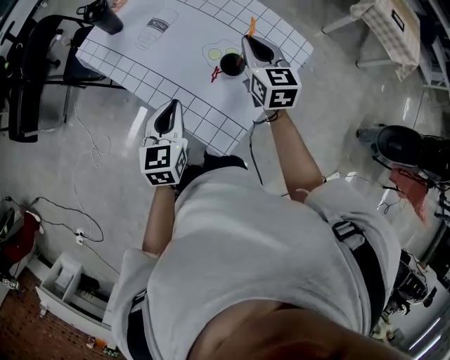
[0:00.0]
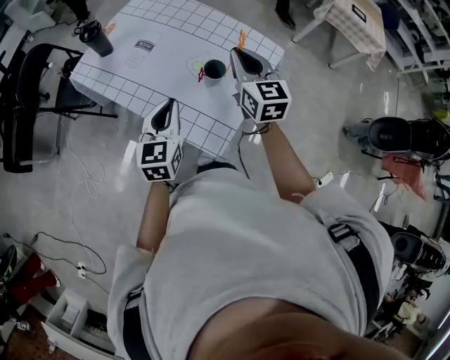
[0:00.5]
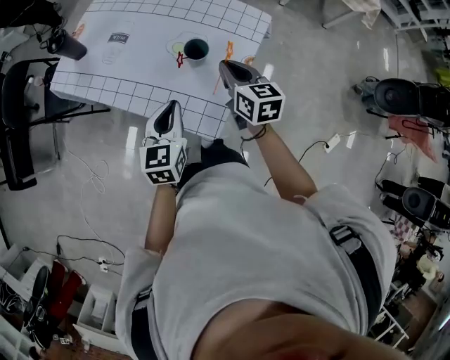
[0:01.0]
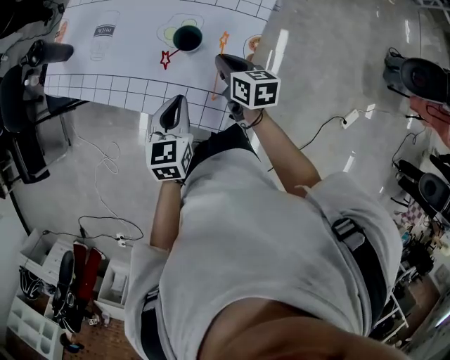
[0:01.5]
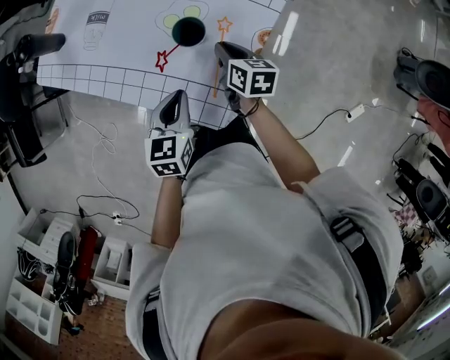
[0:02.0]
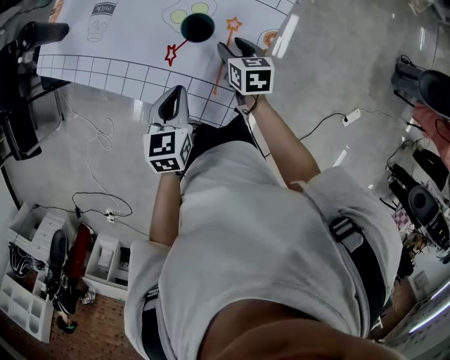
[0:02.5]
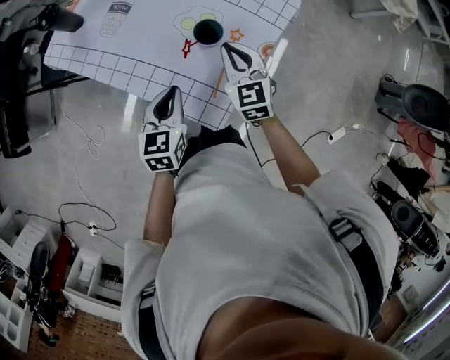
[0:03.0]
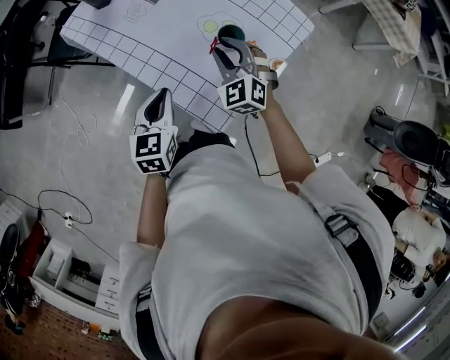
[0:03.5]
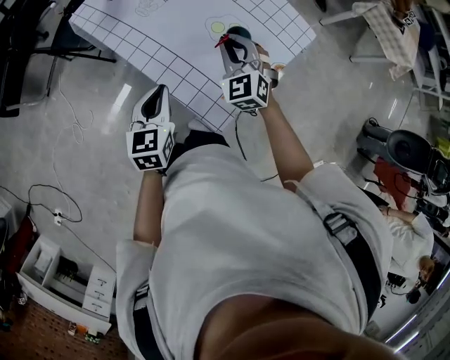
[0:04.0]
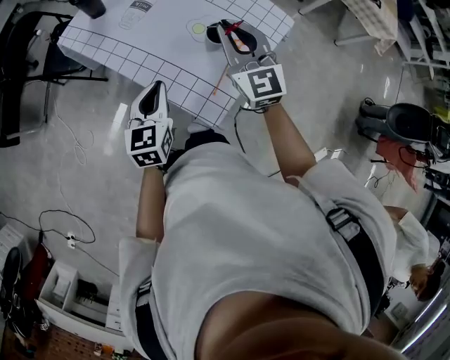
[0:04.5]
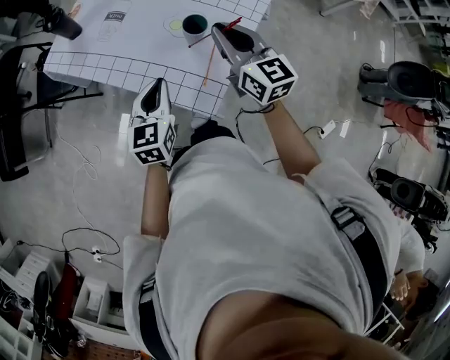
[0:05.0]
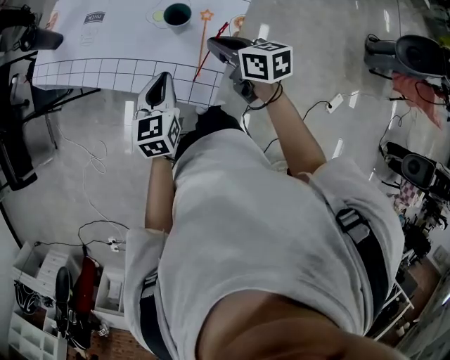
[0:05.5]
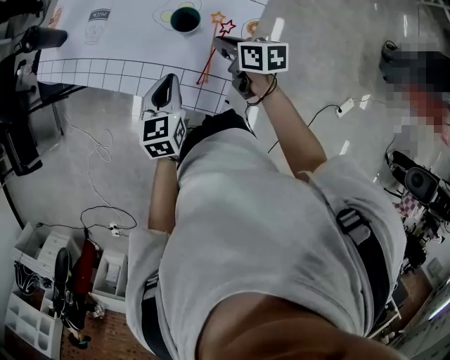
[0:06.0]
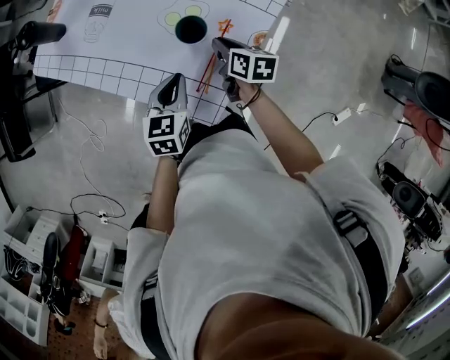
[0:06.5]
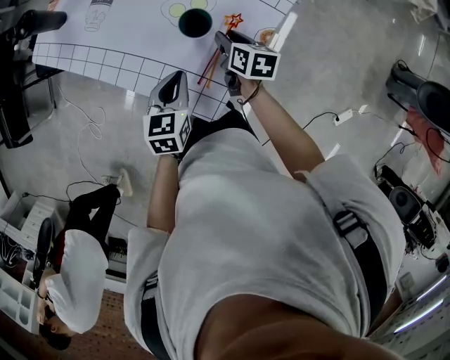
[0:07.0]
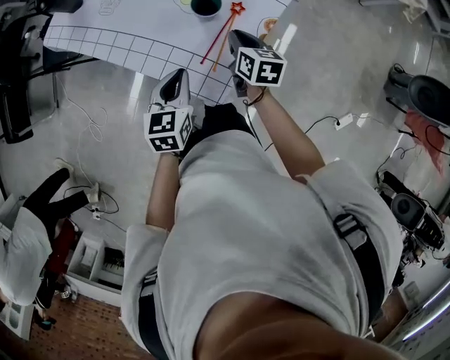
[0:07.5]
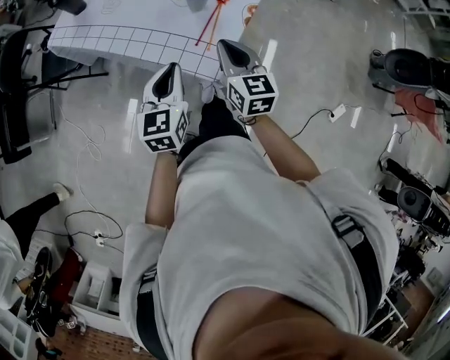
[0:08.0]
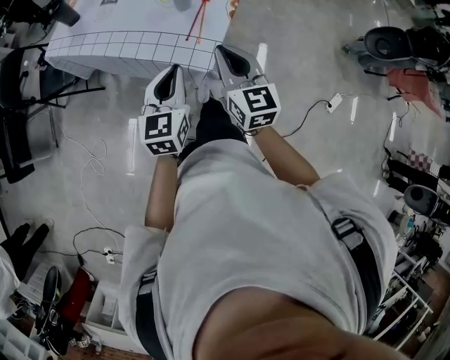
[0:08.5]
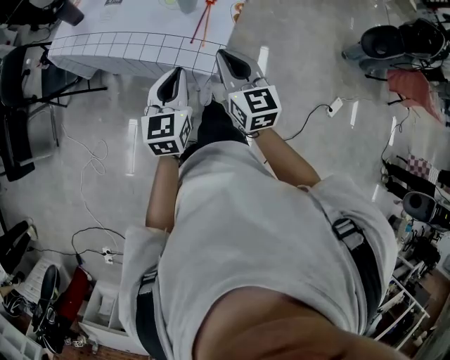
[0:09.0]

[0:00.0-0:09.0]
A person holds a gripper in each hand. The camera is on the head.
0:00.0 to 0:02.0: The left gripper heads downward and to the right, covering roughly 15 cm, and rotates some 20 degrees, while the right gripper travels downward by approximately 20 cm, and changes its angle by some 40 degrees.
0:02.0 to 0:04.5: The right gripper heads upward, covering some 30 cm, rolls counterclockwise, seen from behind, by some 60 degrees, and opens, then closes once more. Meanwhile the left gripper moves to the left and upward, about 15 cm, and swivels about 20 degrees.
0:04.5 to 0:07.0: The left gripper goes approximately 15 cm to the right and downward. The right gripper goes some 30 cm downward, rotates around the line of its fingers by about 60 degrees, clockwise from behind, and opens up.
0:07.0 to 0:09.0: Both grippers travel together backward and upward, roughly 35 cm. The left gripper changes its angle by approximately 30 degrees; the right gripper swivels roughly 40 degrees, and closes its fingers.

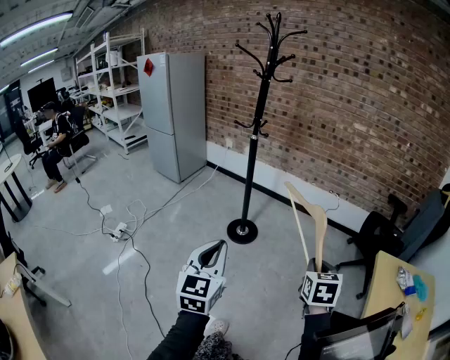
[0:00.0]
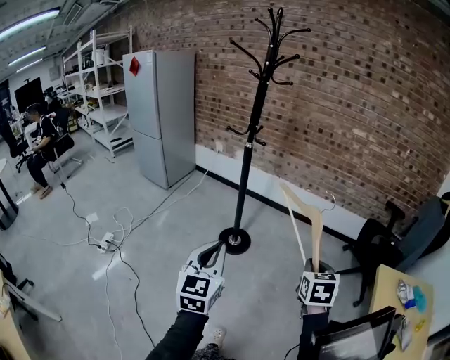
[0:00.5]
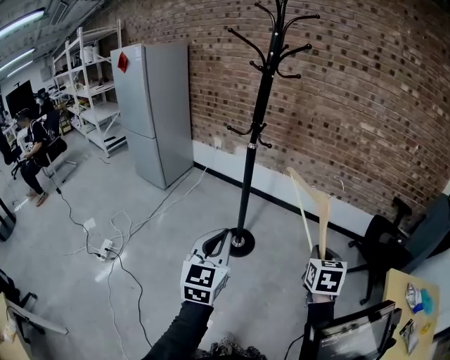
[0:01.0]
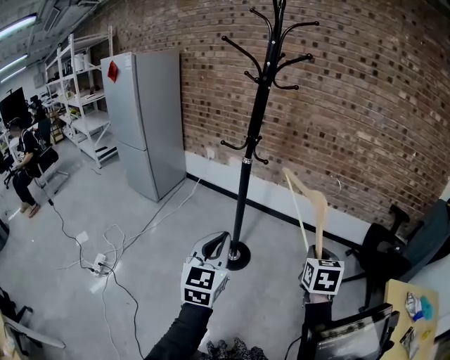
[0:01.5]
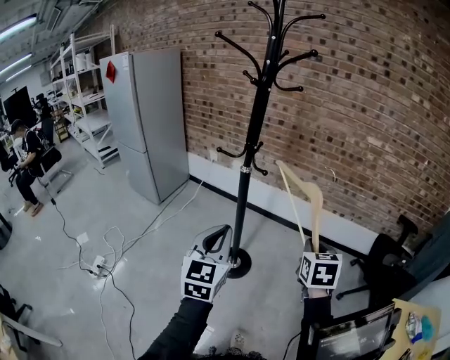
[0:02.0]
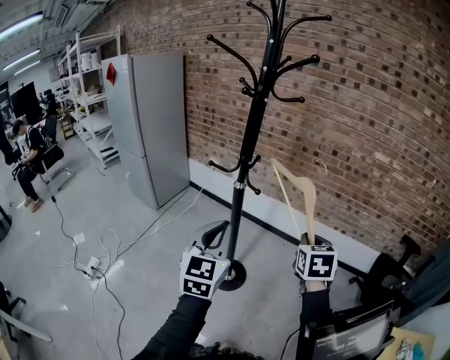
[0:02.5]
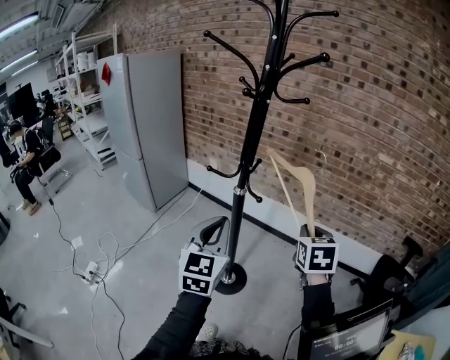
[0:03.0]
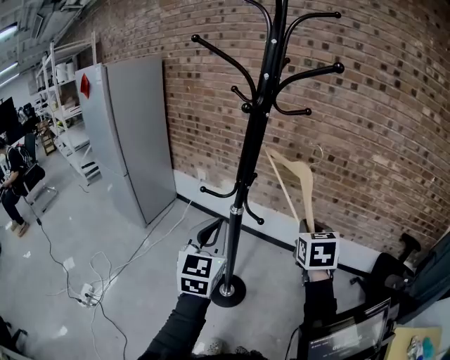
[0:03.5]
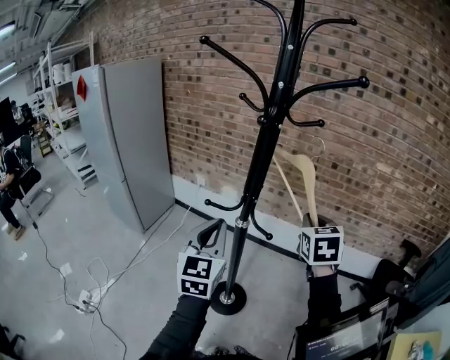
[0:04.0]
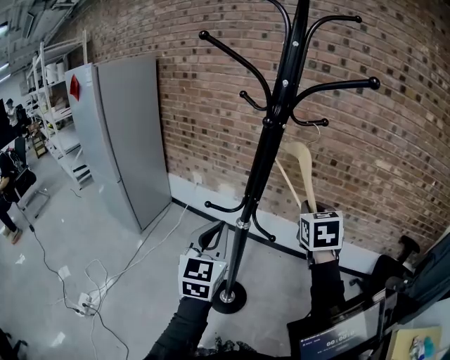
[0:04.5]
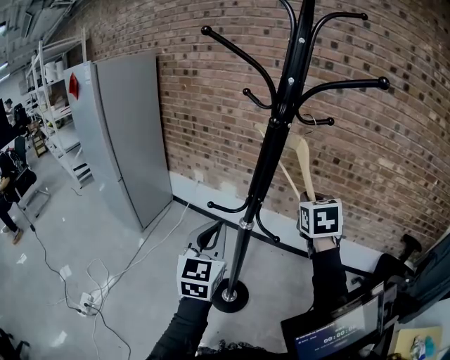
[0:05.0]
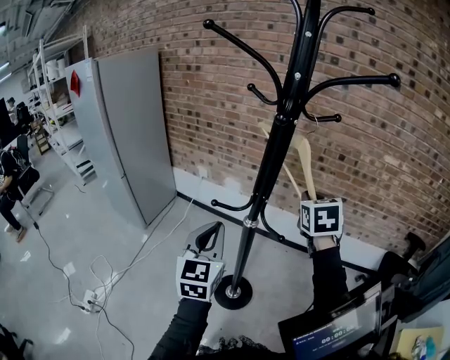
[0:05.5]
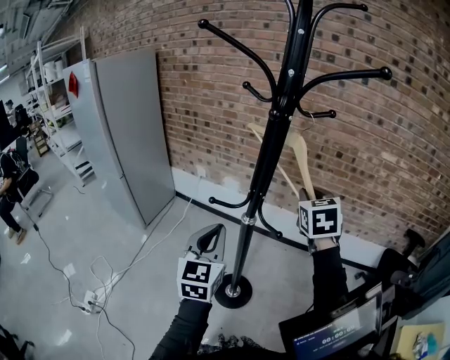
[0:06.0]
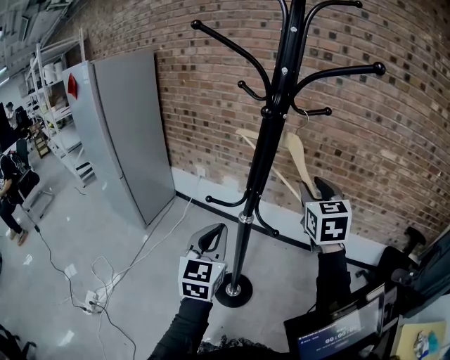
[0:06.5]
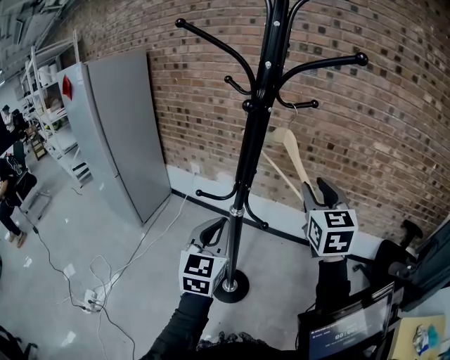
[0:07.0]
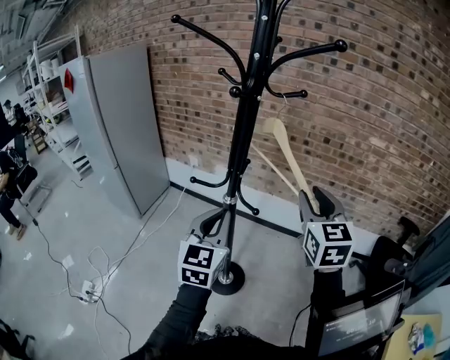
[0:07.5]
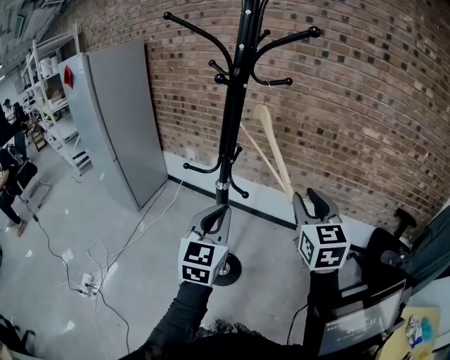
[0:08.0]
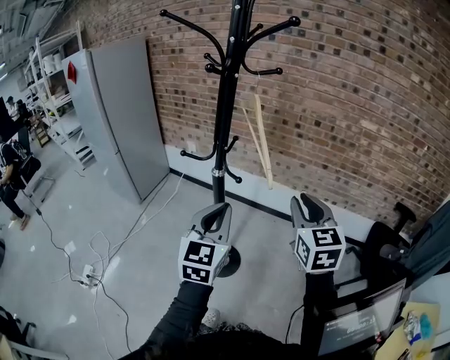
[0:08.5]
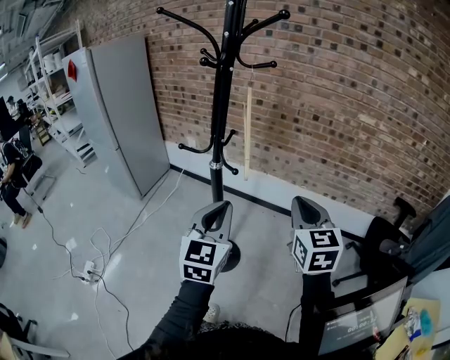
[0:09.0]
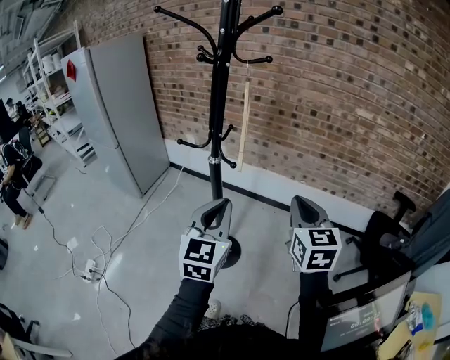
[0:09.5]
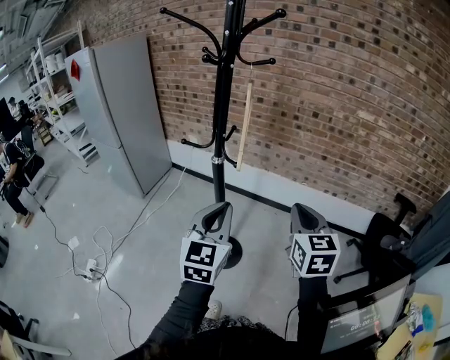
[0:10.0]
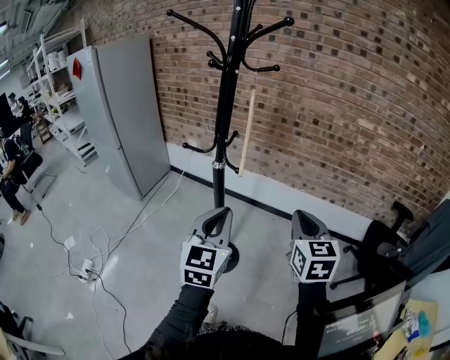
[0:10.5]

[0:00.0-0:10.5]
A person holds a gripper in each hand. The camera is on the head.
0:00.0 to 0:02.0: Both grippers are carried forward, roughly 40 cm.
0:02.0 to 0:04.0: The two grippers go approximately 25 cm forward.
0:04.0 to 0:06.5: The right gripper travels upward by about 5 cm, and opens up.
0:06.5 to 0:08.5: The left gripper heads to the right and backward, covering about 15 cm. The right gripper moves backward and to the right, approximately 20 cm.
0:08.5 to 0:10.5: The right gripper is displaced backward by some 5 cm, and closes its fingers.

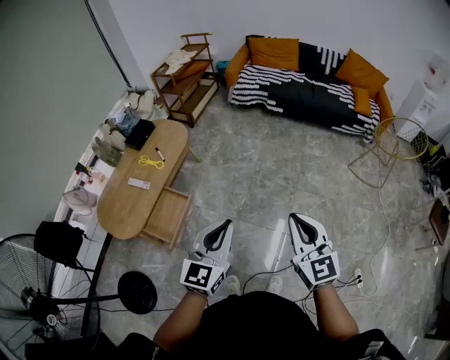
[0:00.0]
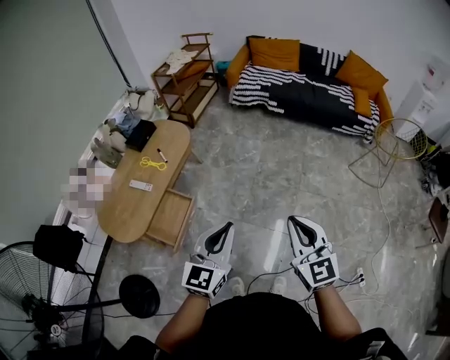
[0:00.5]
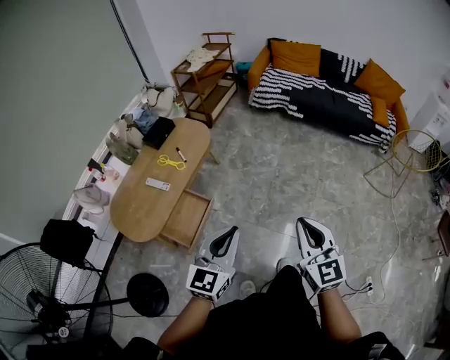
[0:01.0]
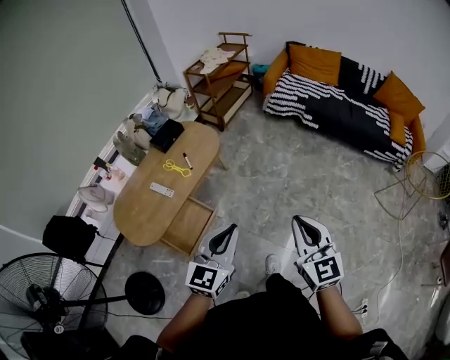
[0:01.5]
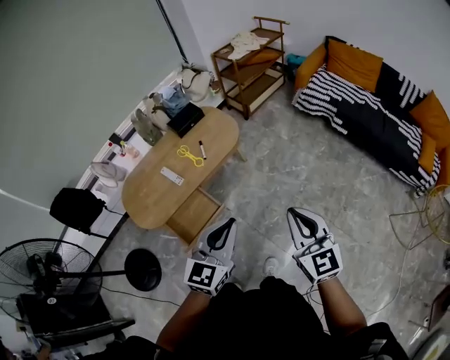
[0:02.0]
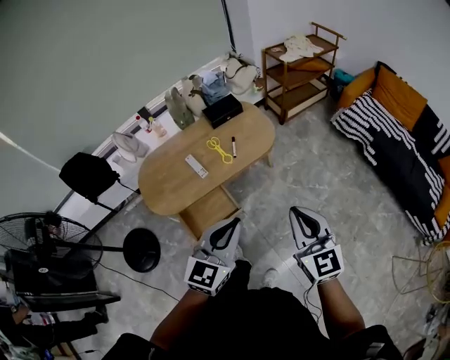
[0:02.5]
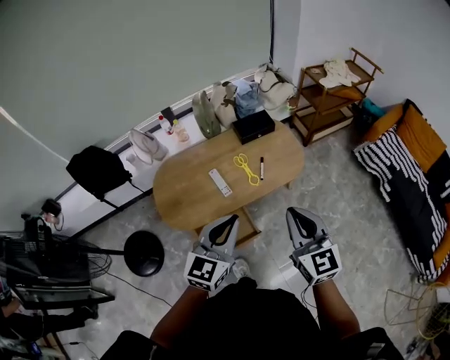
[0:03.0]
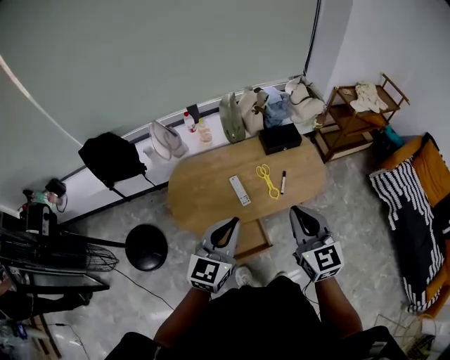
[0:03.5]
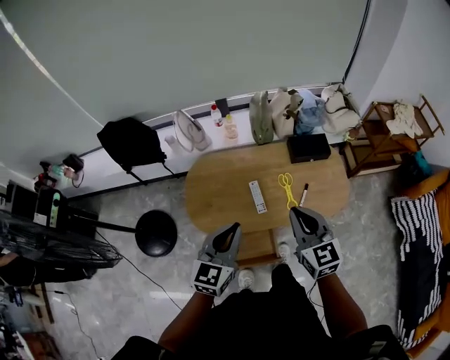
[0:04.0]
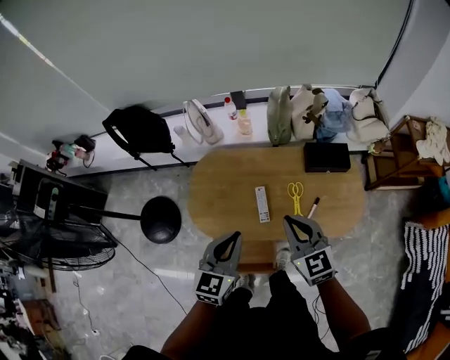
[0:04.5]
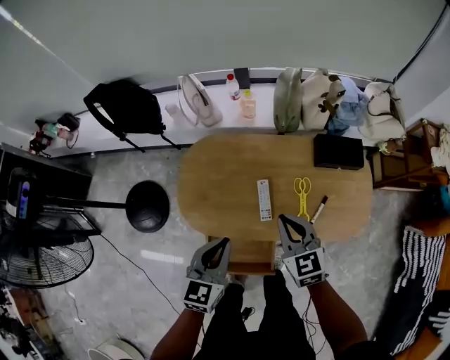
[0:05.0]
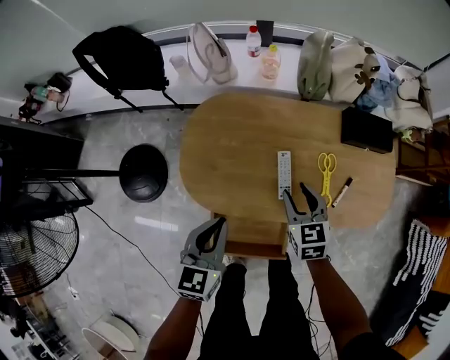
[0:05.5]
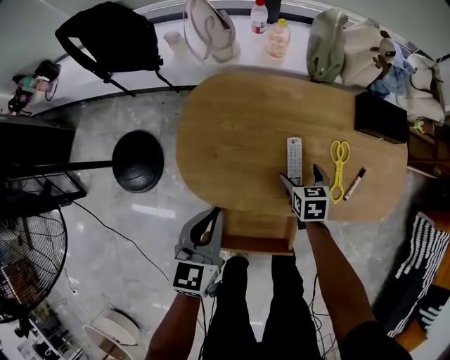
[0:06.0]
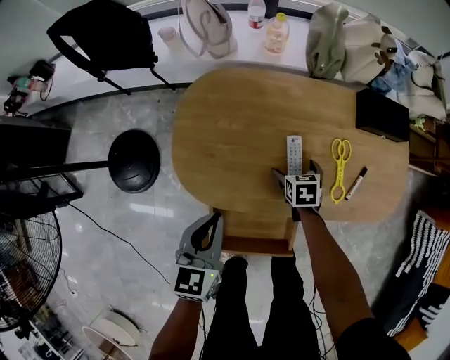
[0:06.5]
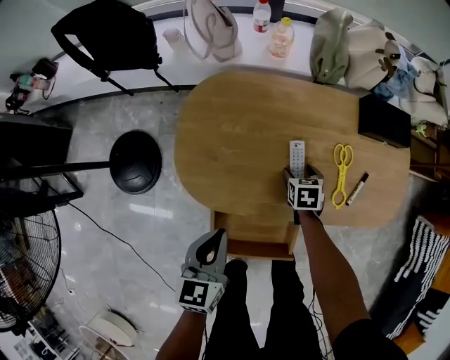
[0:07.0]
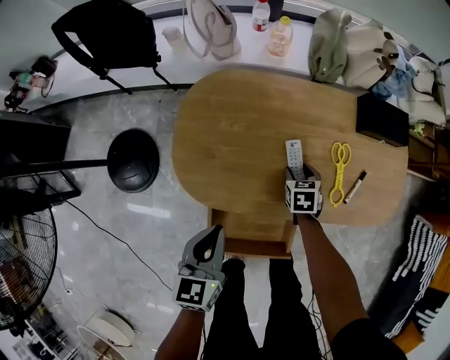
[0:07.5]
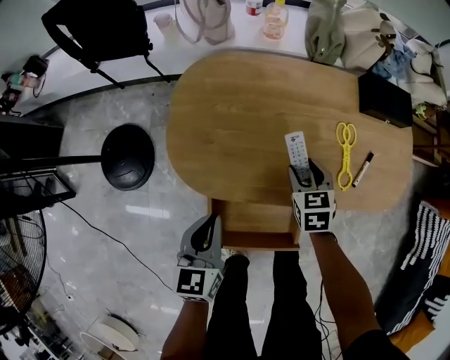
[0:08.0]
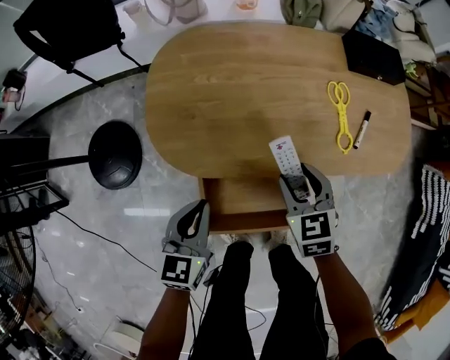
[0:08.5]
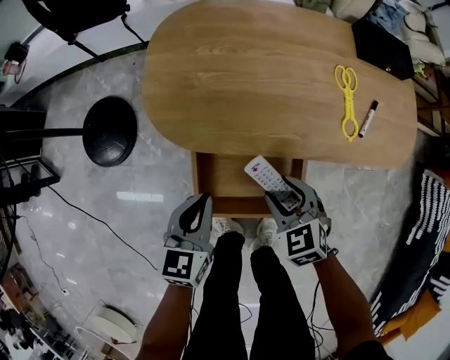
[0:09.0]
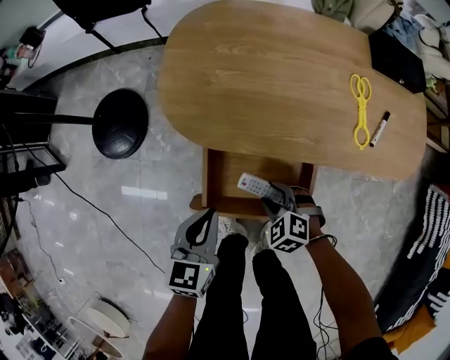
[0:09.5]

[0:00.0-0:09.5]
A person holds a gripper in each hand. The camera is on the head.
0:00.0 to 0:02.0: The two grippers go approximately 25 cm forward. The left gripper swivels about 20 degrees. The right gripper swivels some 30 degrees.
0:02.0 to 0:04.0: The pair of grippers is taken approximately 50 cm. The right gripper turns by about 40 degrees; the left gripper swivels some 40 degrees.
0:04.0 to 0:05.5: The right gripper heads downward and forward, covering approximately 35 cm, and swivels roughly 20 degrees; the left gripper is displaced downward by roughly 25 cm, and turns by roughly 20 degrees.
0:05.5 to 0:07.5: The left gripper moves downward, about 10 cm. The right gripper is displaced downward by approximately 20 cm, rotates about 20 degrees, and opens, then closes once more.
0:07.5 to 0:09.5: The left gripper shifts approximately 20 cm backward and downward. The right gripper travels backward and to the left by roughly 30 cm, and rotates around the line of its fingers by roughly 50 degrees, counterclockwise from behind.
